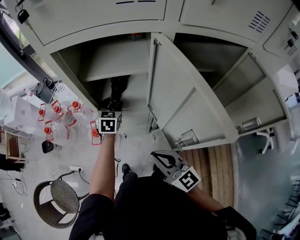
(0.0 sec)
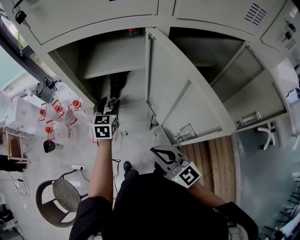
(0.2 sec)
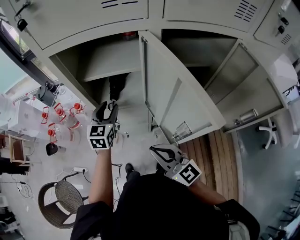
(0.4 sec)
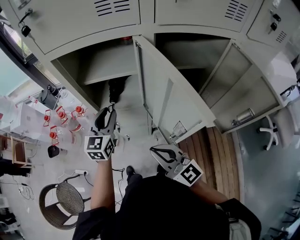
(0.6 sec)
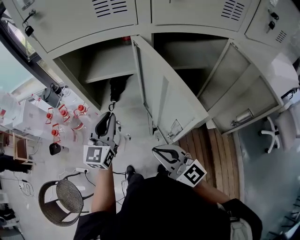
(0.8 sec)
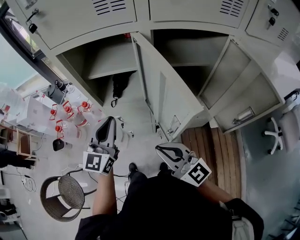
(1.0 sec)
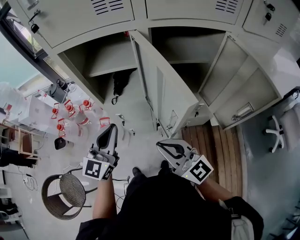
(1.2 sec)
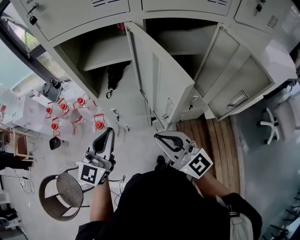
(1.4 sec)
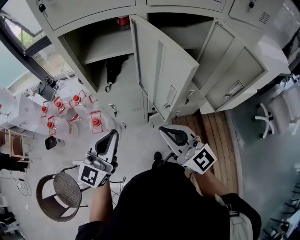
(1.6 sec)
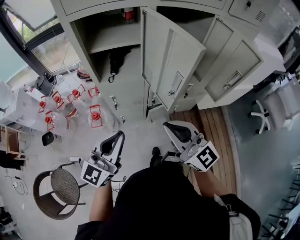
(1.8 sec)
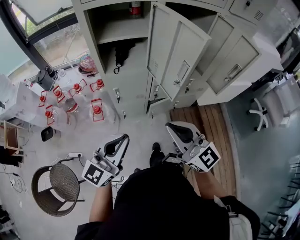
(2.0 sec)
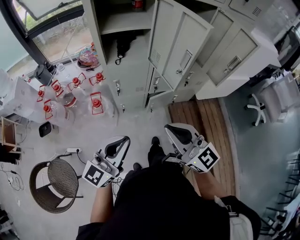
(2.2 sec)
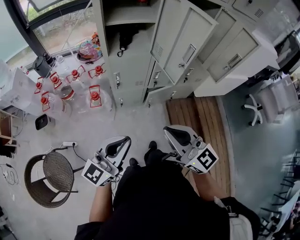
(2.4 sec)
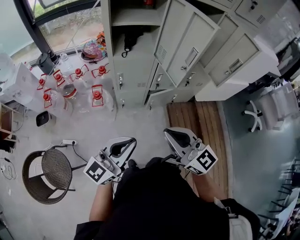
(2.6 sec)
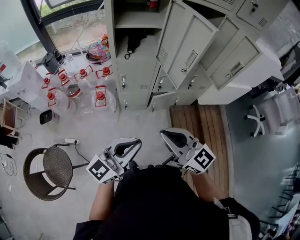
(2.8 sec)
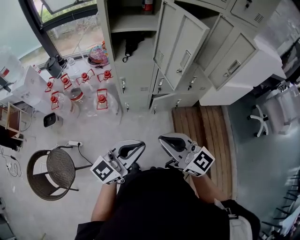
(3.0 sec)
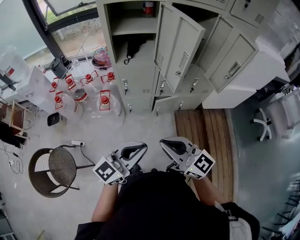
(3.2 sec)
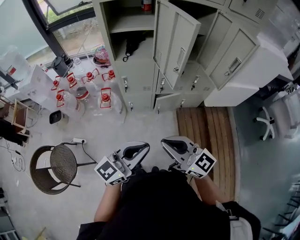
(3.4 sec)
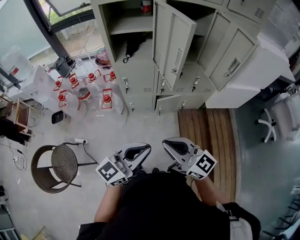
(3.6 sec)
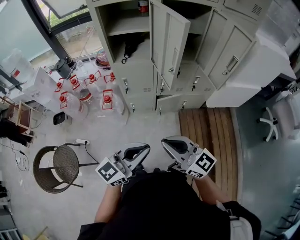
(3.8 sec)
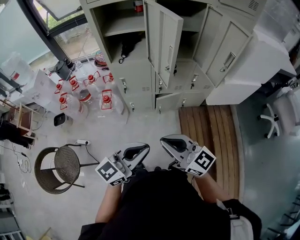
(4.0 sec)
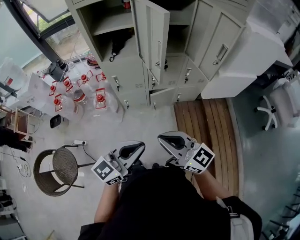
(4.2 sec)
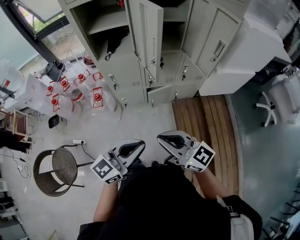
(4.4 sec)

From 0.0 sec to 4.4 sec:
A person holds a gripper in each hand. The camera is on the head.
From 0.0 sec to 1.4 sec: The right gripper heads upward and backward, covering about 10 cm; the left gripper heads backward and upward, covering roughly 35 cm, points its fingers about 40 degrees further upward, and closes.
From 1.4 sec to 3.0 sec: Both grippers move backward, roughly 25 cm. The left gripper changes its angle by about 30 degrees.
From 3.0 sec to 4.4 sec: The two grippers go about 10 cm to the right.

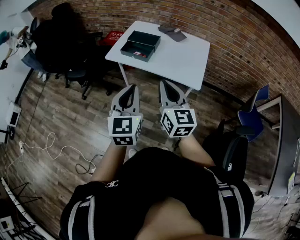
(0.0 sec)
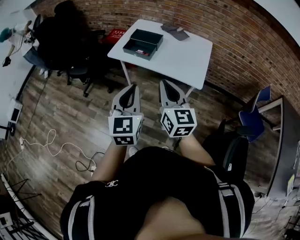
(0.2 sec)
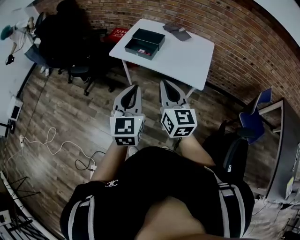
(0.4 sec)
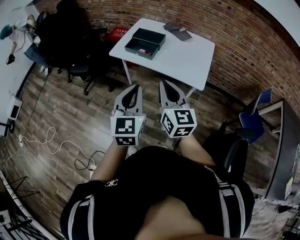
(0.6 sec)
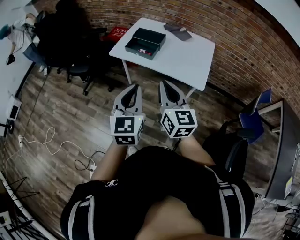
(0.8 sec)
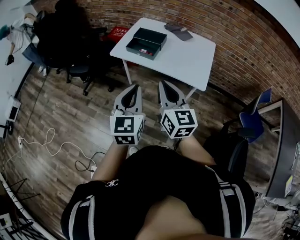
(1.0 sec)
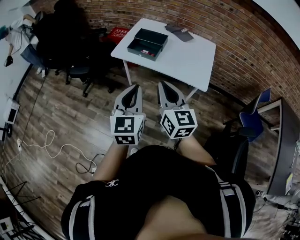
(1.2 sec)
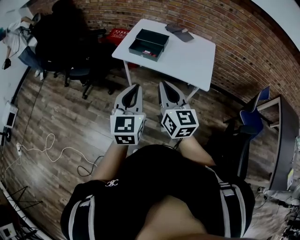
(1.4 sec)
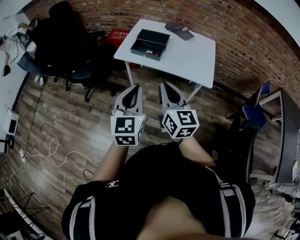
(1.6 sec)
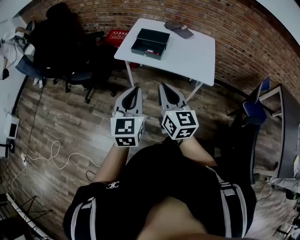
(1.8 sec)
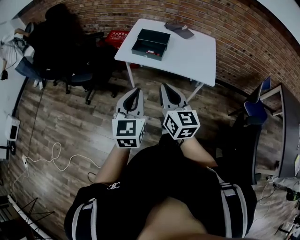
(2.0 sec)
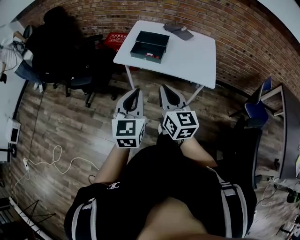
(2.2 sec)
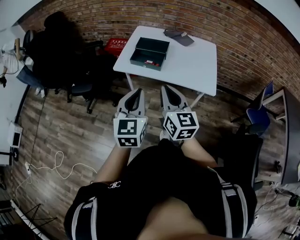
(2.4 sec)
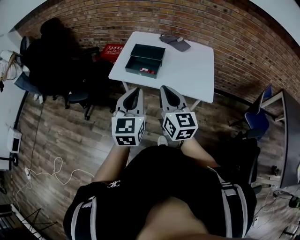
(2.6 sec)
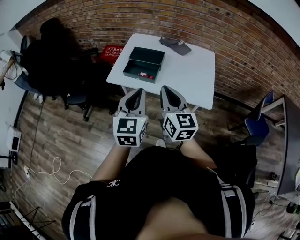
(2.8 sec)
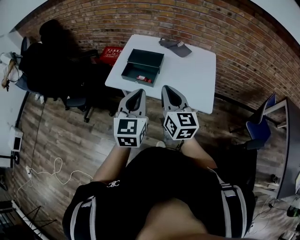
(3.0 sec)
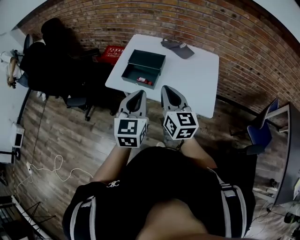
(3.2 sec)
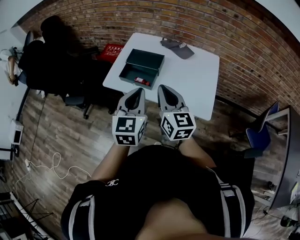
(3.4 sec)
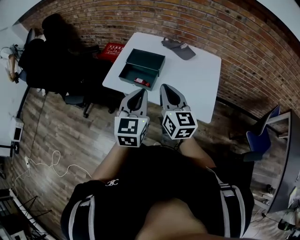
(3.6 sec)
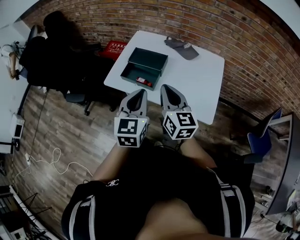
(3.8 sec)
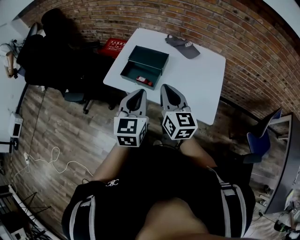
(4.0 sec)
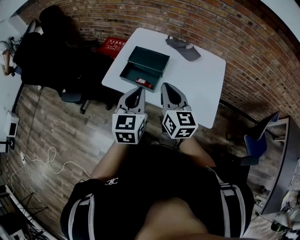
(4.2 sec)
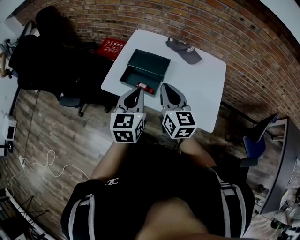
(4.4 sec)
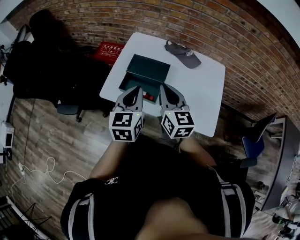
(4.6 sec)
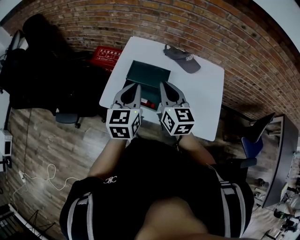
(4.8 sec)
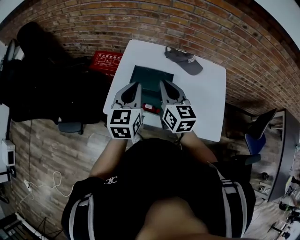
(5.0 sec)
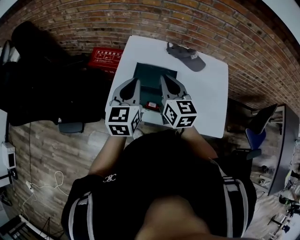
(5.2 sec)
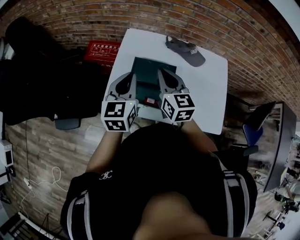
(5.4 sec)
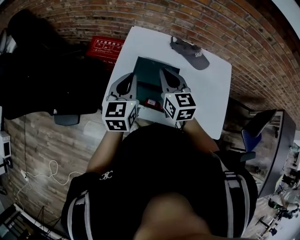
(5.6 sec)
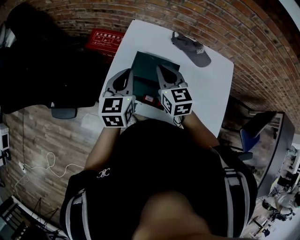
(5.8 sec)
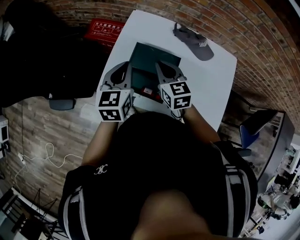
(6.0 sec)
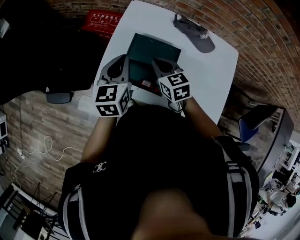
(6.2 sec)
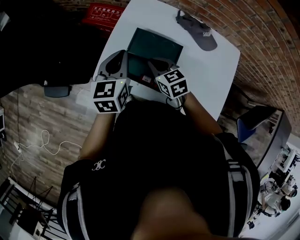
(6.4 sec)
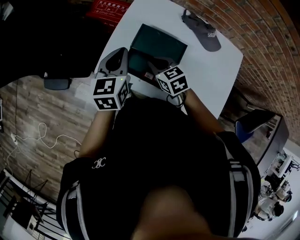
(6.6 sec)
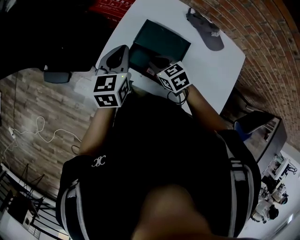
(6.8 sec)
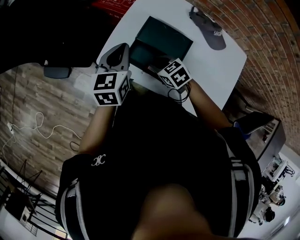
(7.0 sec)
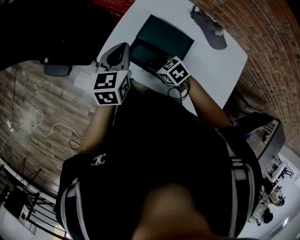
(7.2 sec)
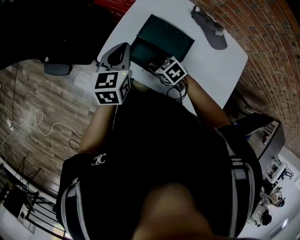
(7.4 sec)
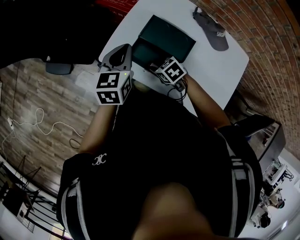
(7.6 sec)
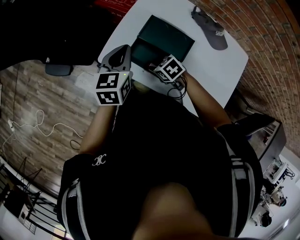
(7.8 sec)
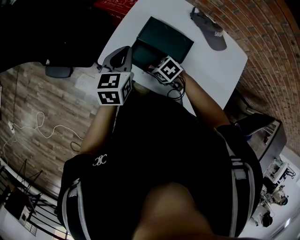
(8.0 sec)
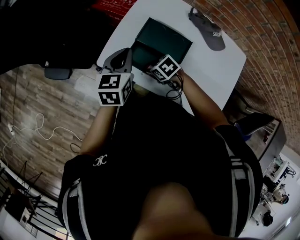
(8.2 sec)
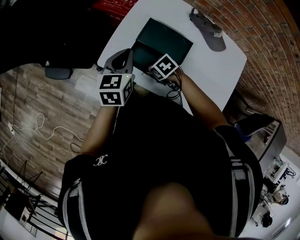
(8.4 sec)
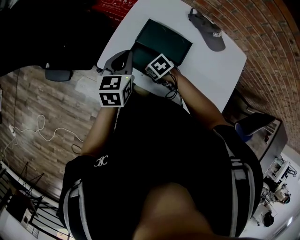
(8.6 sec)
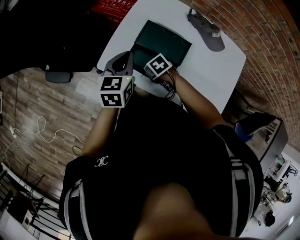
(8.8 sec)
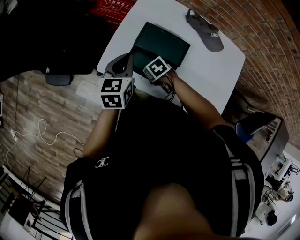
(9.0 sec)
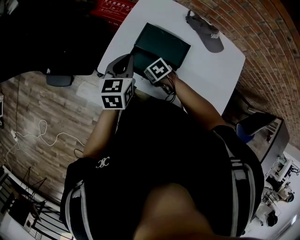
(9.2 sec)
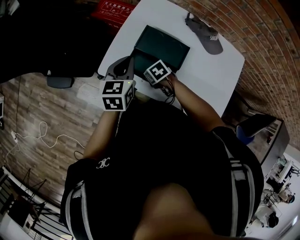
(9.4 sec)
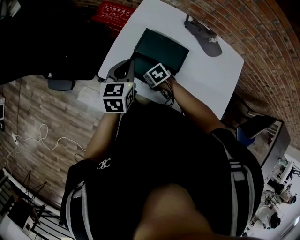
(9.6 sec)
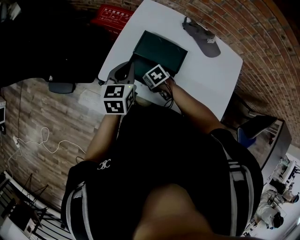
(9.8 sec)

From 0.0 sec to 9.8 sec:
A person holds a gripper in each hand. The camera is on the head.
From 0.0 sec to 1.4 sec: Both grippers travel together to the left, about 10 cm.
From 1.4 sec to 2.8 sec: Both grippers travel together forward, some 15 cm.
From 2.8 sec to 4.2 sec: The grippers both shift forward by approximately 15 cm.
From 4.2 sec to 5.6 sec: The two grippers go about 25 cm forward and to the left.
From 5.6 sec to 7.0 sec: The left gripper heads downward, covering roughly 5 cm. The right gripper is displaced downward by about 20 cm, and tilts its fingers some 30 degrees downward.
From 7.0 sec to 8.4 sec: The right gripper heads downward, covering about 5 cm.
From 8.4 sec to 9.8 sec: The grippers make only small movements.

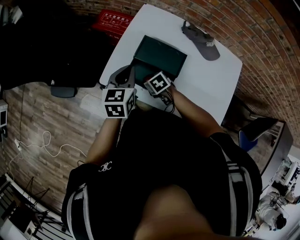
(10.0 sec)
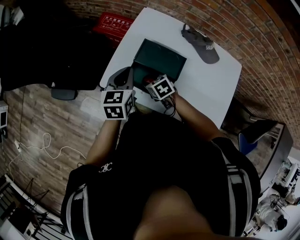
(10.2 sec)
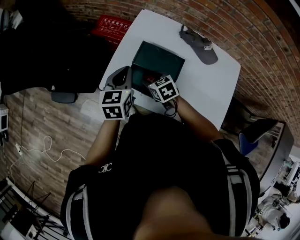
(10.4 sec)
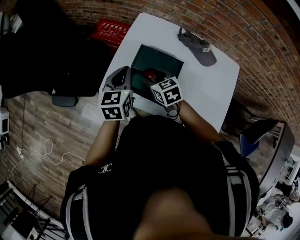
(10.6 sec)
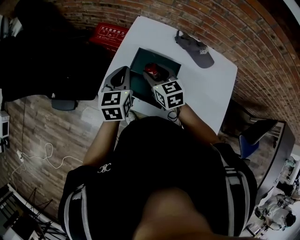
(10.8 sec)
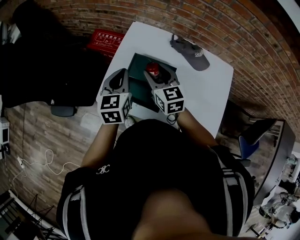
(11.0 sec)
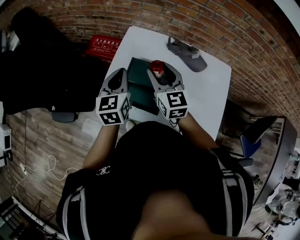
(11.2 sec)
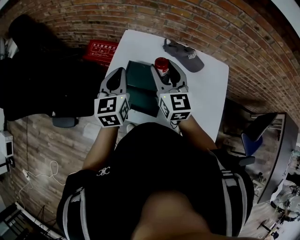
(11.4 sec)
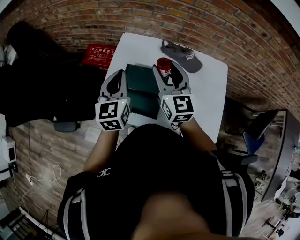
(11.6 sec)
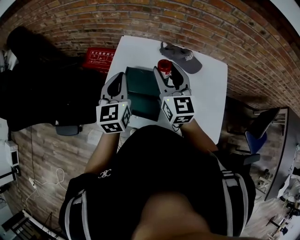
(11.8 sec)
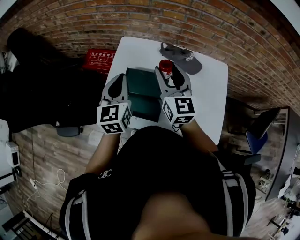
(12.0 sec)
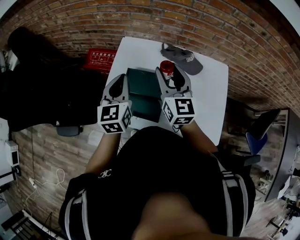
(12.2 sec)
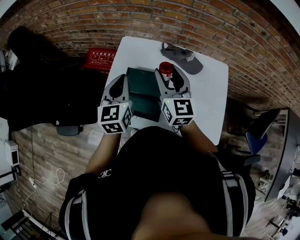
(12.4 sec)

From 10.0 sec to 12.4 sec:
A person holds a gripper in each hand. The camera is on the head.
From 10.0 sec to 11.2 sec: The right gripper shifts roughly 30 cm upward, and points its fingers approximately 50 degrees further upward. The left gripper is displaced upward and forward by approximately 10 cm.
From 11.2 sec to 12.4 sec: The right gripper shifts some 5 cm to the right.

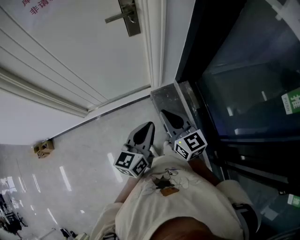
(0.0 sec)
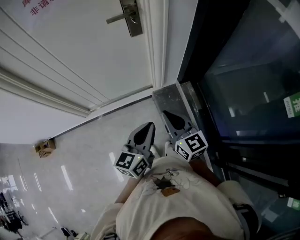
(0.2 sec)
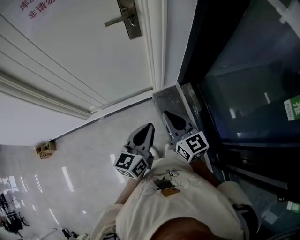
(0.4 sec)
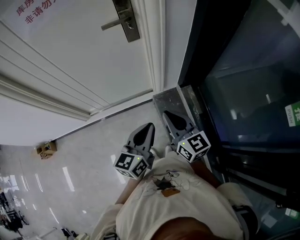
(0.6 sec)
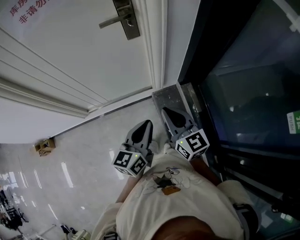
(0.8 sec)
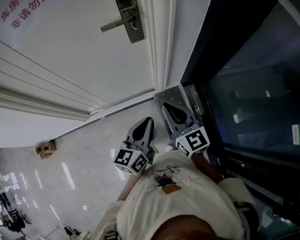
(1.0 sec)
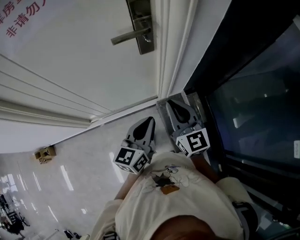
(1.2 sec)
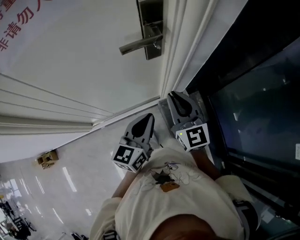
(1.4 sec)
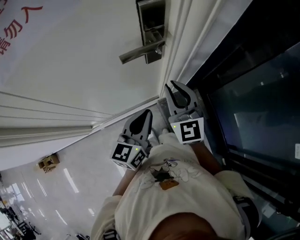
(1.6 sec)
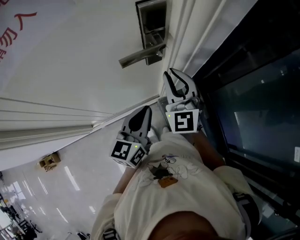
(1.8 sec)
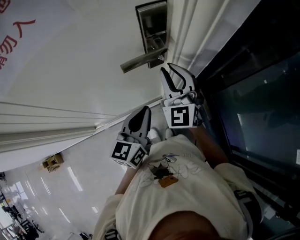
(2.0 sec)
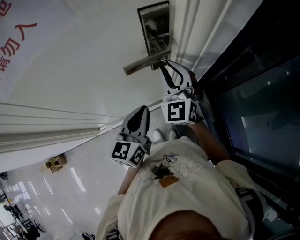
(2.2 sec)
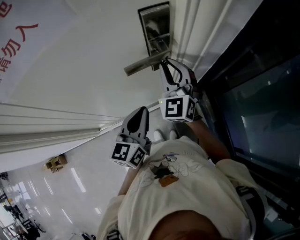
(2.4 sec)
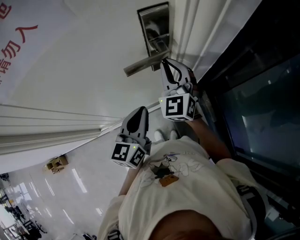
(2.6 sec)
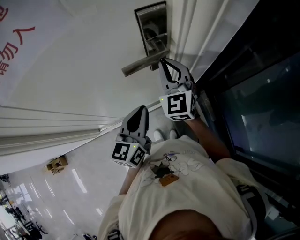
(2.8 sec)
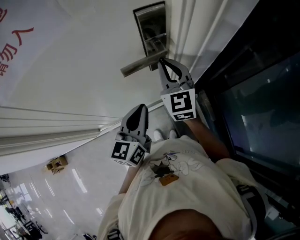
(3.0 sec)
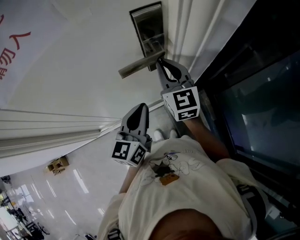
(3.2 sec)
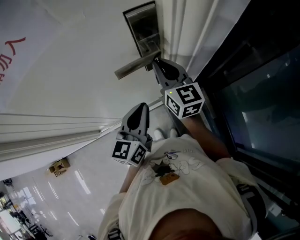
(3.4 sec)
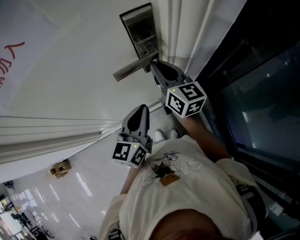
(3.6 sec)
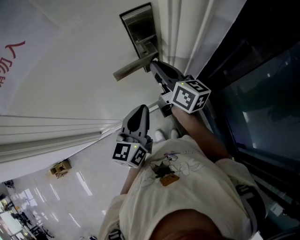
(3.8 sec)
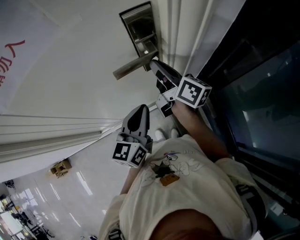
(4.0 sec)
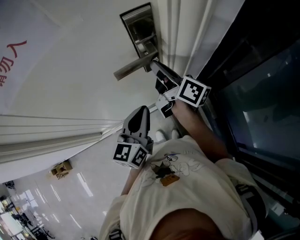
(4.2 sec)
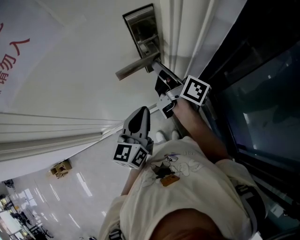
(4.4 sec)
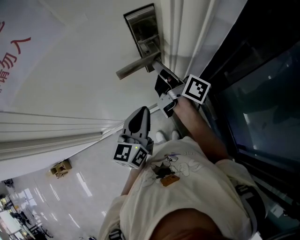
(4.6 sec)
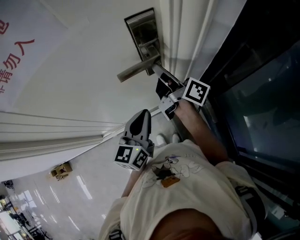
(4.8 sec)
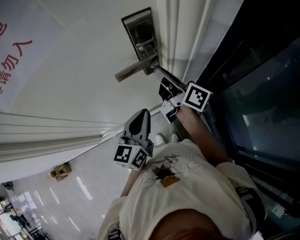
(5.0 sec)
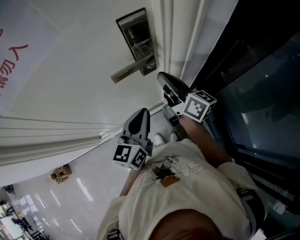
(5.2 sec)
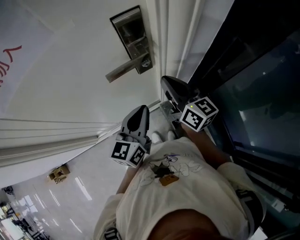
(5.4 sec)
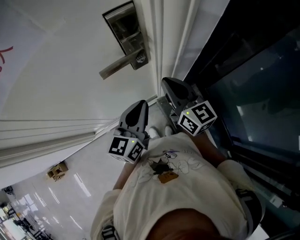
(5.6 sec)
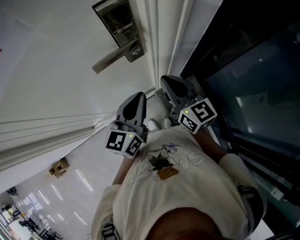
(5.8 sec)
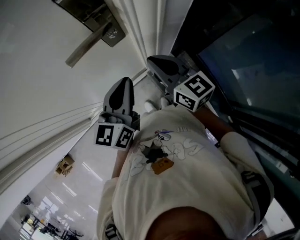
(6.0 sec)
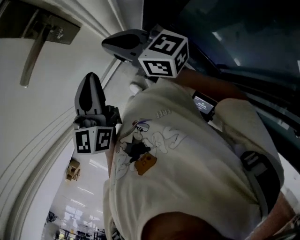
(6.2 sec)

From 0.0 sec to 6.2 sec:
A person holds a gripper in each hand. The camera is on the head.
From 0.0 sec to 1.6 sec: Both grippers travel together forward, roughly 30 cm. The right gripper turns by some 30 degrees.
From 1.6 sec to 3.2 sec: The left gripper heads forward, covering approximately 5 cm. Meanwhile the right gripper travels forward by about 10 cm.
From 3.2 sec to 4.6 sec: The right gripper rotates around the line of its fingers by about 70 degrees, clockwise from behind.
From 4.6 sec to 6.2 sec: The right gripper is displaced backward by roughly 5 cm, and rolls counterclockwise, seen from behind, by roughly 40 degrees.
